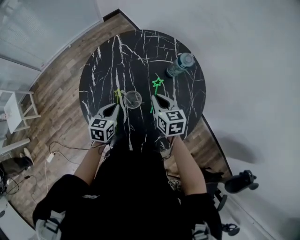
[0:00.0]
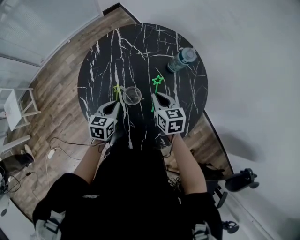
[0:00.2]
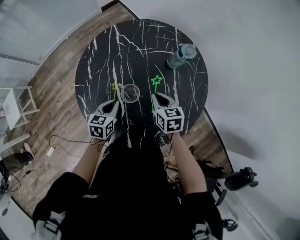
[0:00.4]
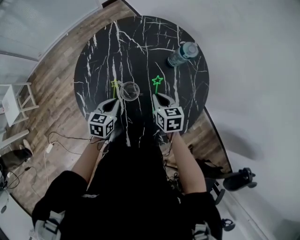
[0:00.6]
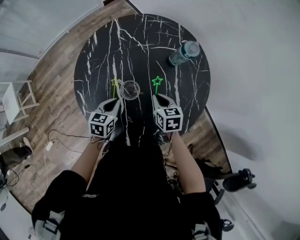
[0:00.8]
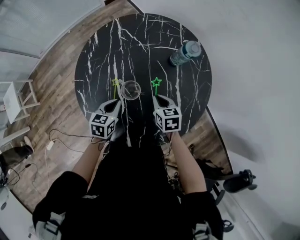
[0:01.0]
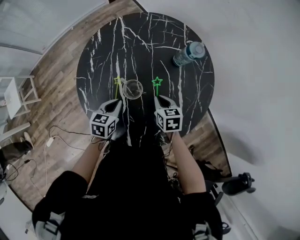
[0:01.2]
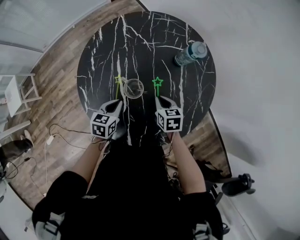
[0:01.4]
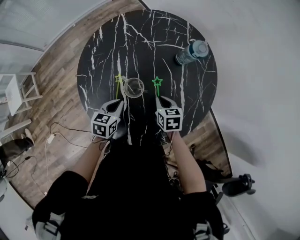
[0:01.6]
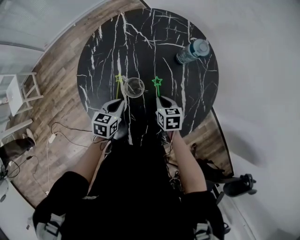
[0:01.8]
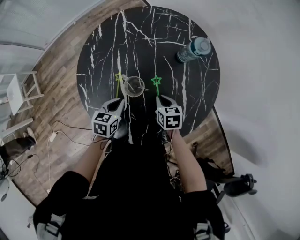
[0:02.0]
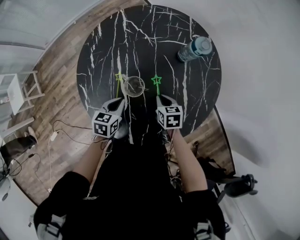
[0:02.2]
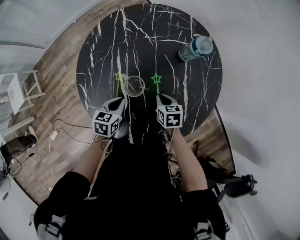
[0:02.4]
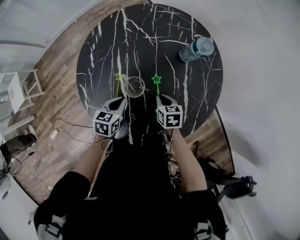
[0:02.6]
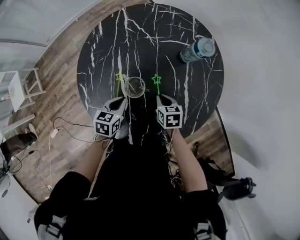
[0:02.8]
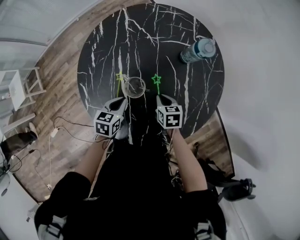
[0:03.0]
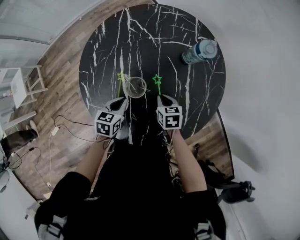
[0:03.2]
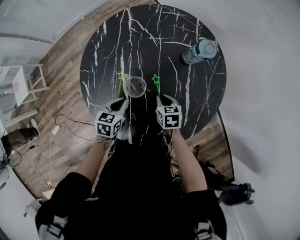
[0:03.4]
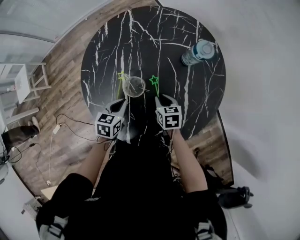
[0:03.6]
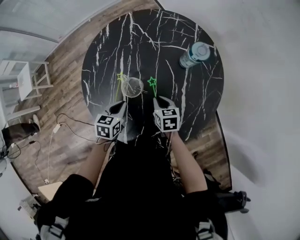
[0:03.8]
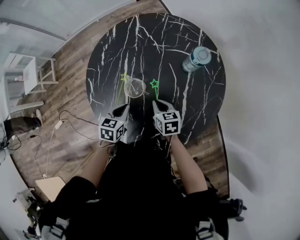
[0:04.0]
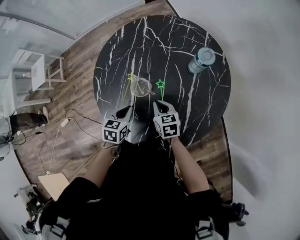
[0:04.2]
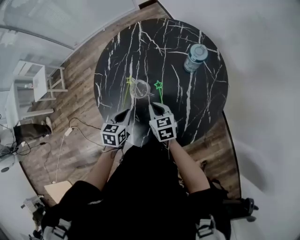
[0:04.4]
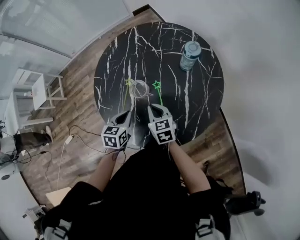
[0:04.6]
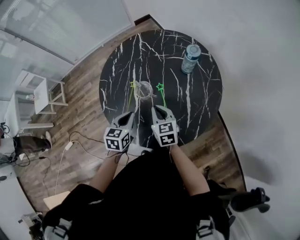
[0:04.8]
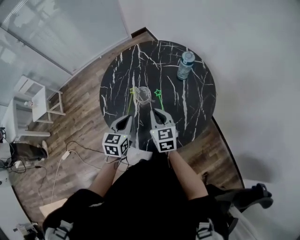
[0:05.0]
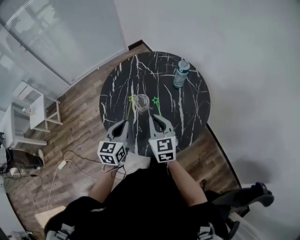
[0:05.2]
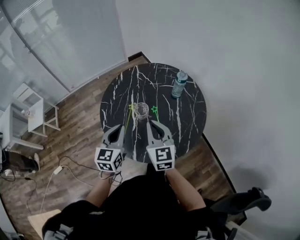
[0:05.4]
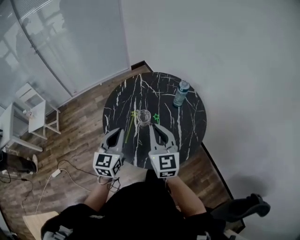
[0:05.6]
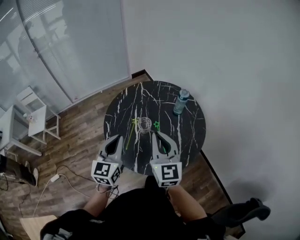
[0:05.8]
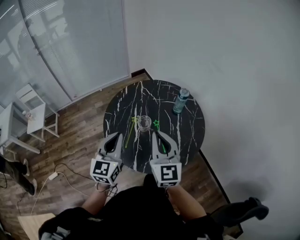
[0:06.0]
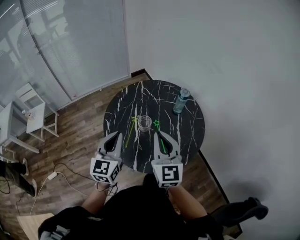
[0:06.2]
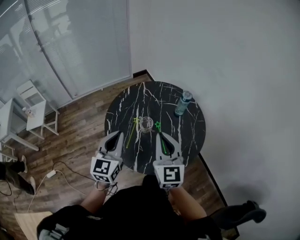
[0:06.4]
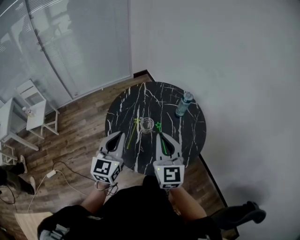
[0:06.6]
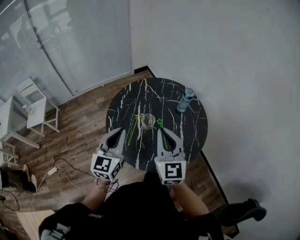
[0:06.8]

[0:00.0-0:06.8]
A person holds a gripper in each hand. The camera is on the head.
0:00.0 to 0:01.4: The left gripper shifts about 5 cm downward. Meanwhile the right gripper heads downward, covering some 10 cm.
0:01.4 to 0:02.8: The right gripper goes some 5 cm downward.
0:02.8 to 0:04.0: There are only small adjustments of the grippers.
0:04.0 to 0:05.4: Both grippers travel together upward, about 25 cm. The right gripper points its fingers some 30 degrees further upward. The left gripper tilts its fingers some 40 degrees upward.
0:05.4 to 0:06.8: Both grippers move upward, approximately 10 cm.

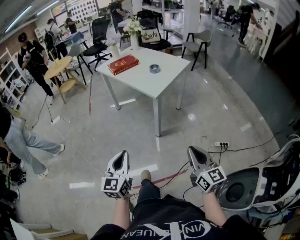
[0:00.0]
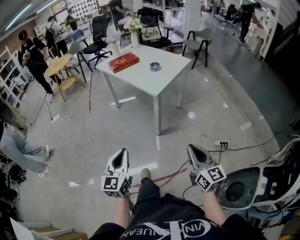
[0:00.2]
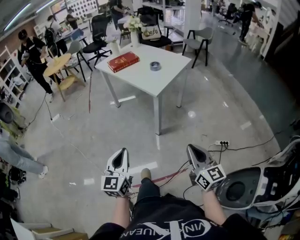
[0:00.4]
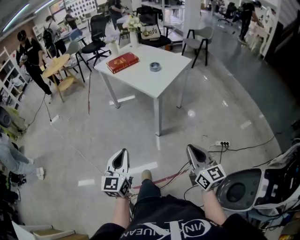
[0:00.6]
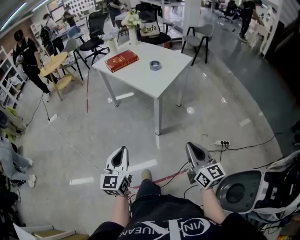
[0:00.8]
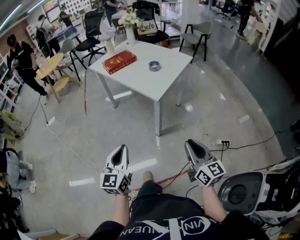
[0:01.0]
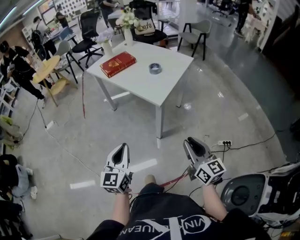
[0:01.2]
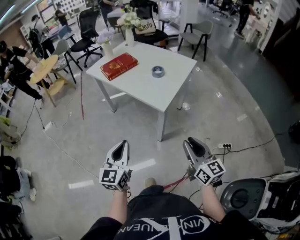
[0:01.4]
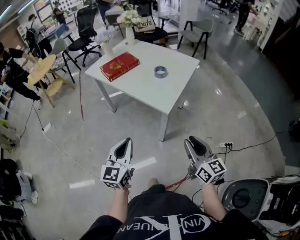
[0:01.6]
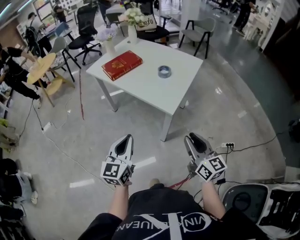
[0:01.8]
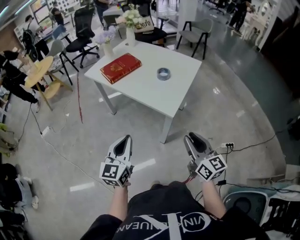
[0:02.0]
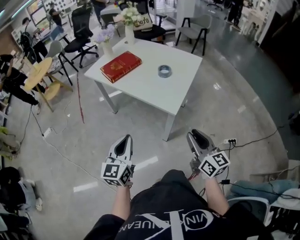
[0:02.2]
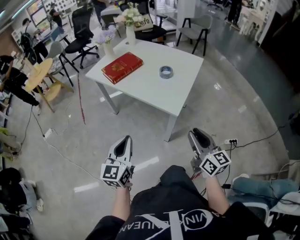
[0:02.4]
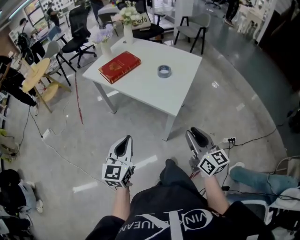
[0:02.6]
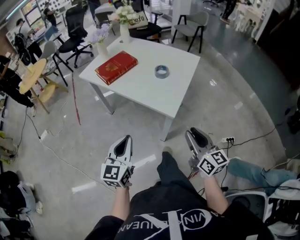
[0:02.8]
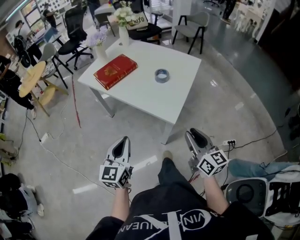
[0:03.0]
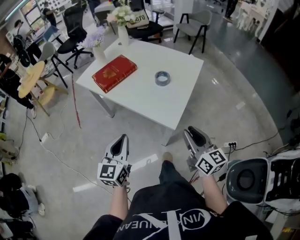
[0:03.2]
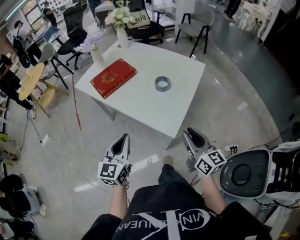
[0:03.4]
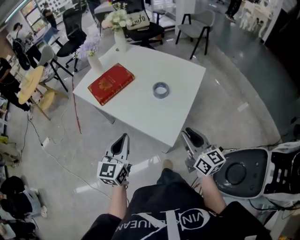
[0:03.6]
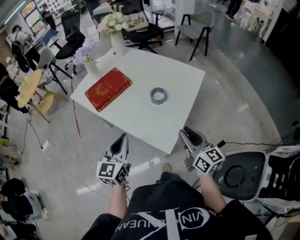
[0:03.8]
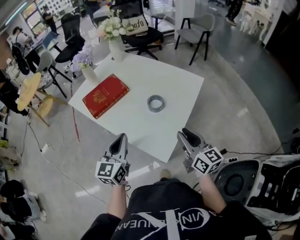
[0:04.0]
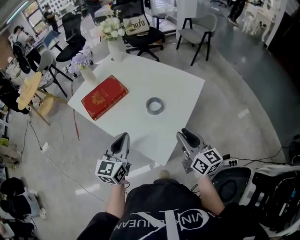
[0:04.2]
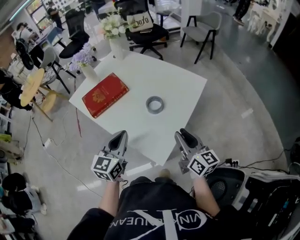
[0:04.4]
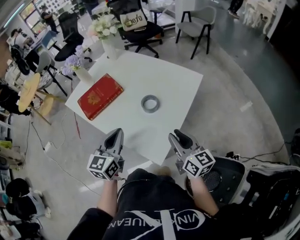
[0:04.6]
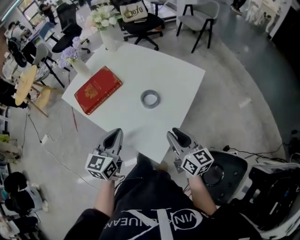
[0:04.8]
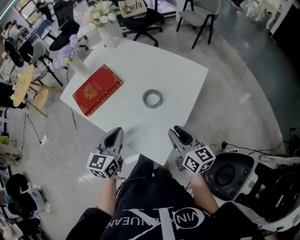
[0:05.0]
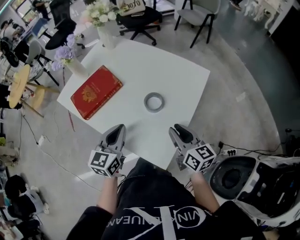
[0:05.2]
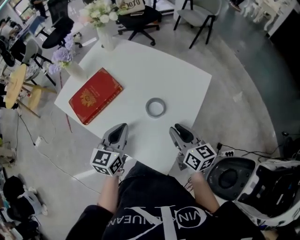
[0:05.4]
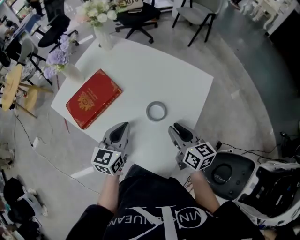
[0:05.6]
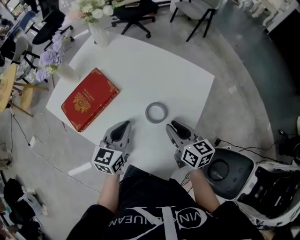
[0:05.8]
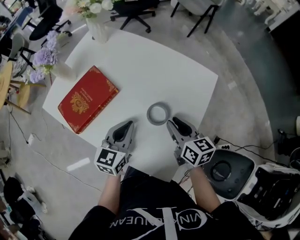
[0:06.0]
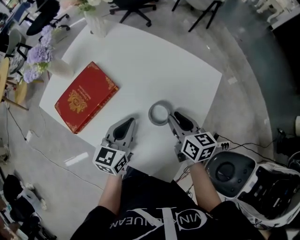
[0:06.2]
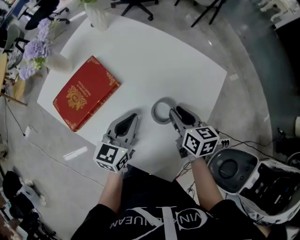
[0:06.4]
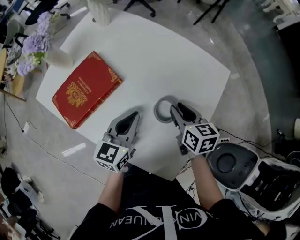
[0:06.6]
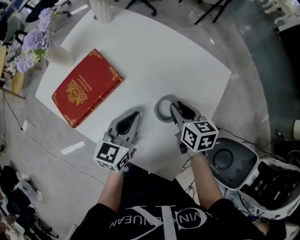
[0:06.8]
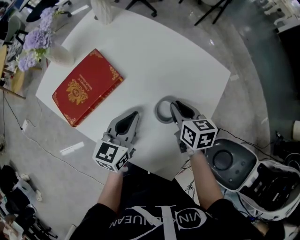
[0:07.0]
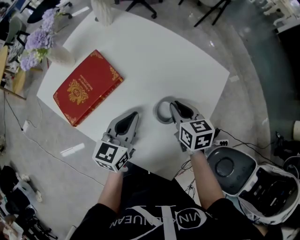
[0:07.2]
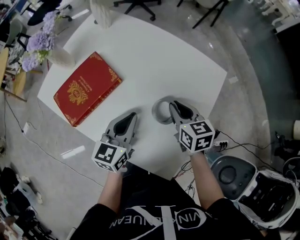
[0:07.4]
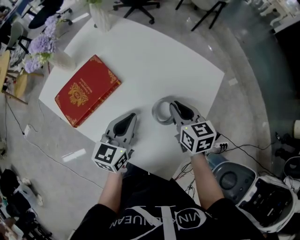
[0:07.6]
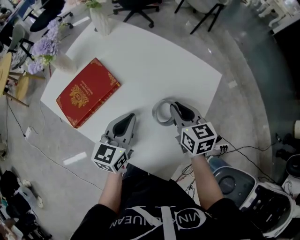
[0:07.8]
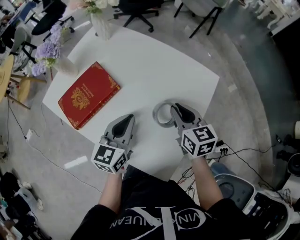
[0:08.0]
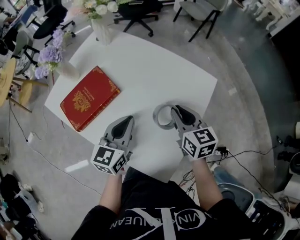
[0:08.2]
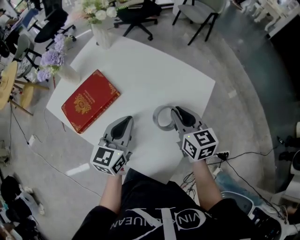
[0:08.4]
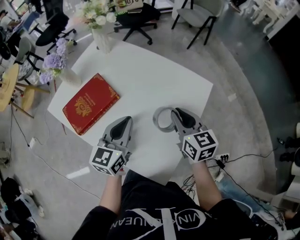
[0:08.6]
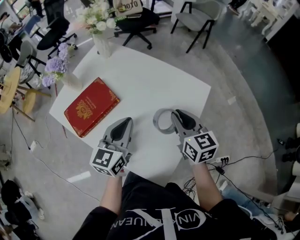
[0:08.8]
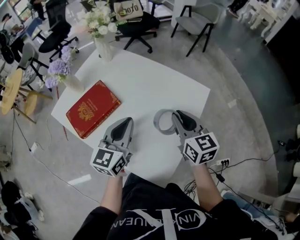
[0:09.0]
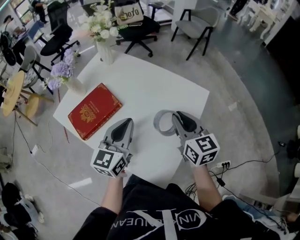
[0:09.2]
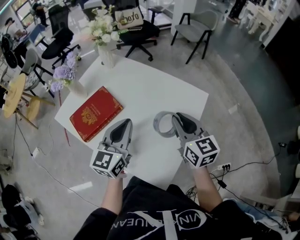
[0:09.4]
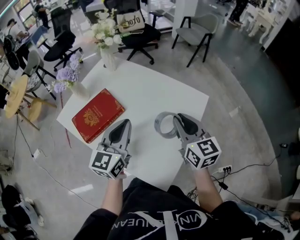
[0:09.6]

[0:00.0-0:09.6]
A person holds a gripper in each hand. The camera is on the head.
0:00.0 to 0:01.6: Both grippers travel together forward, roughly 25 cm. The right gripper opens up.
0:01.6 to 0:03.2: The two grippers go approximately 15 cm forward.
0:03.2 to 0:04.8: The right gripper travels forward by about 20 cm, while the left gripper travels forward and to the right by approximately 25 cm.
0:04.8 to 0:06.4: Both grippers travel together forward and downward, some 20 cm. The right gripper rotates some 30 degrees.
0:06.4 to 0:08.0: The right gripper shifts some 5 cm upward.
0:08.0 to 0:09.6: Both grippers travel together upward, roughly 10 cm.

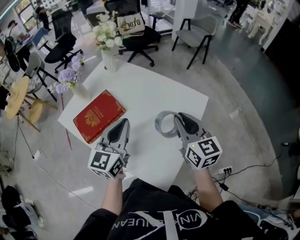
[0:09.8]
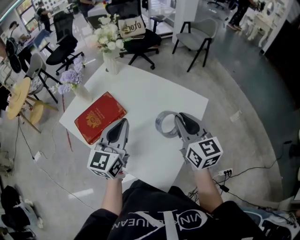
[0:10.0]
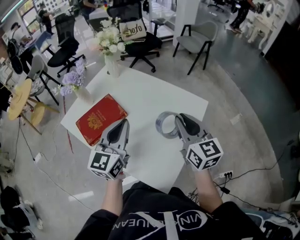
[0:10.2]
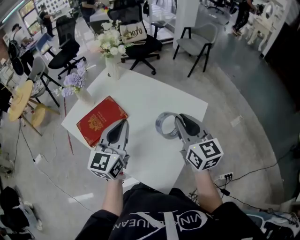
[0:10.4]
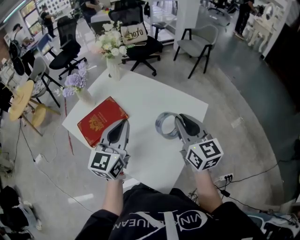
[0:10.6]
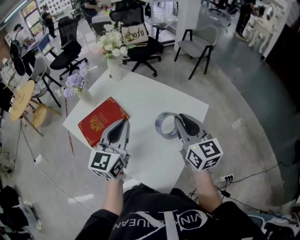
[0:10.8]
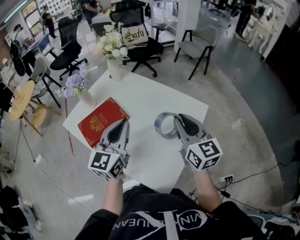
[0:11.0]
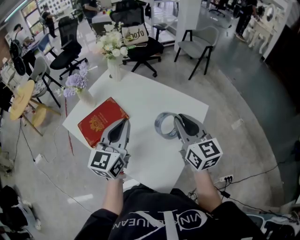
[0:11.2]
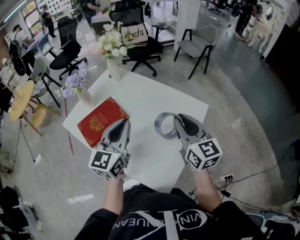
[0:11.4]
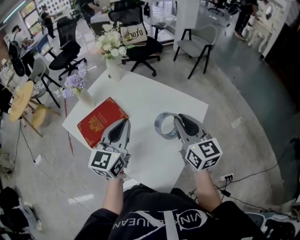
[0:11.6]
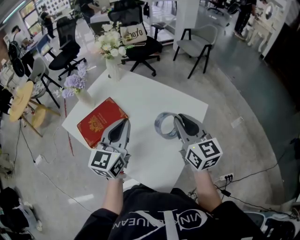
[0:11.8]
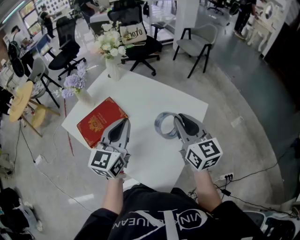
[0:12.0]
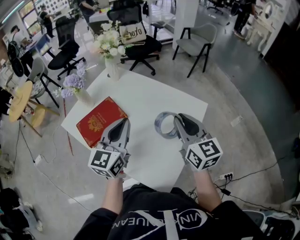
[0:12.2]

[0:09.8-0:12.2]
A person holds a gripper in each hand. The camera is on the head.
0:09.8 to 0:11.0: The grippers move only a little.
0:11.0 to 0:12.2: Both grippers stay about where they are.

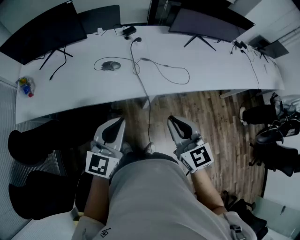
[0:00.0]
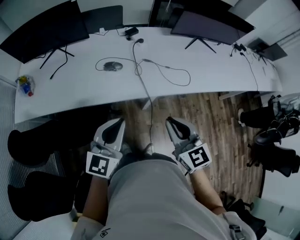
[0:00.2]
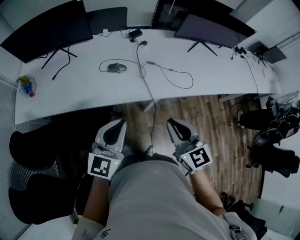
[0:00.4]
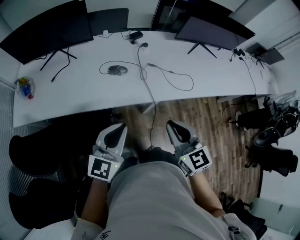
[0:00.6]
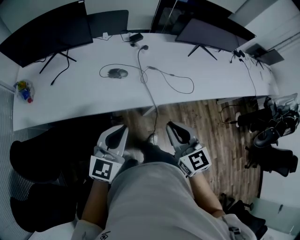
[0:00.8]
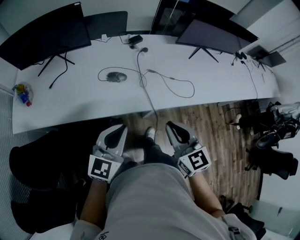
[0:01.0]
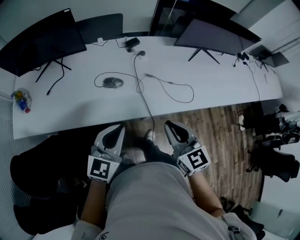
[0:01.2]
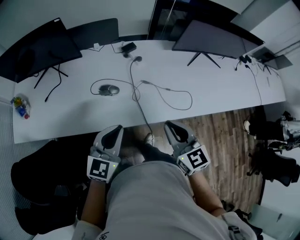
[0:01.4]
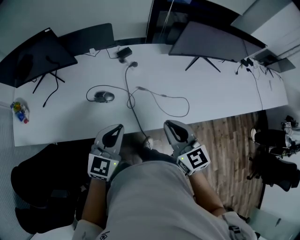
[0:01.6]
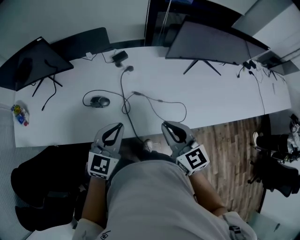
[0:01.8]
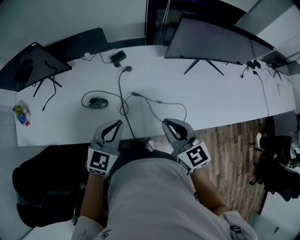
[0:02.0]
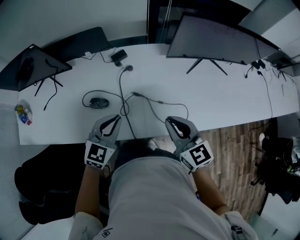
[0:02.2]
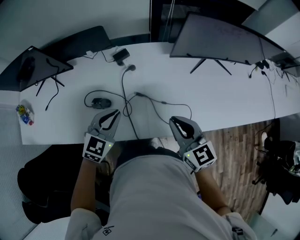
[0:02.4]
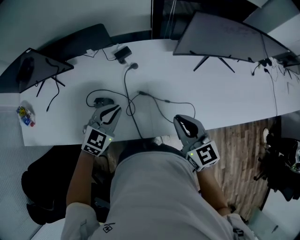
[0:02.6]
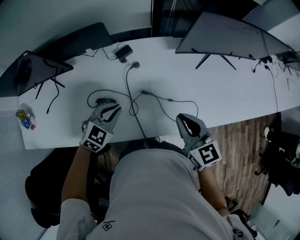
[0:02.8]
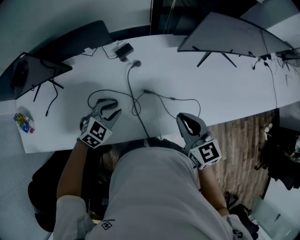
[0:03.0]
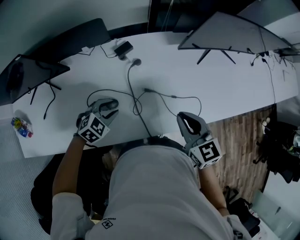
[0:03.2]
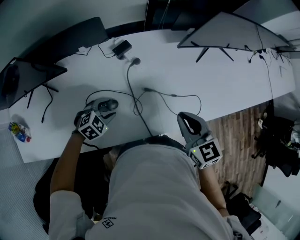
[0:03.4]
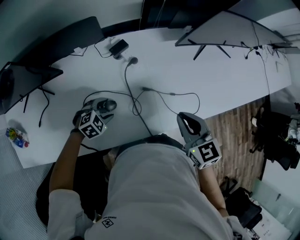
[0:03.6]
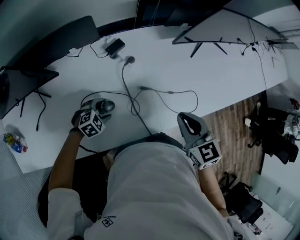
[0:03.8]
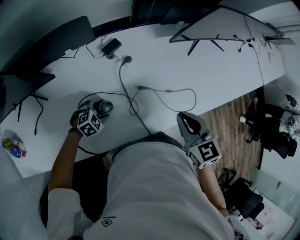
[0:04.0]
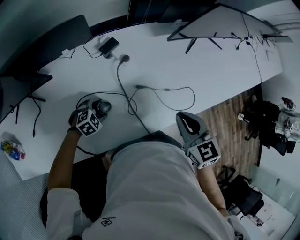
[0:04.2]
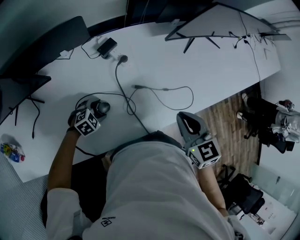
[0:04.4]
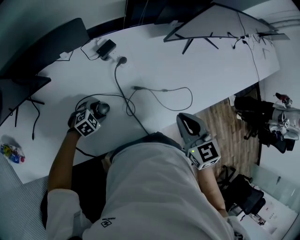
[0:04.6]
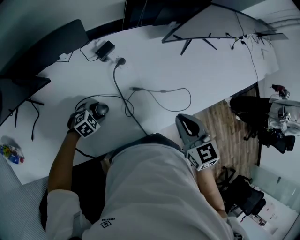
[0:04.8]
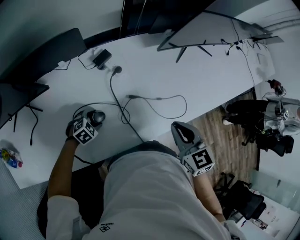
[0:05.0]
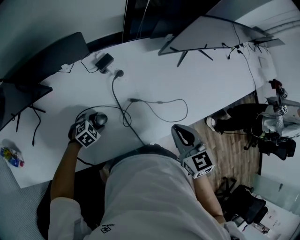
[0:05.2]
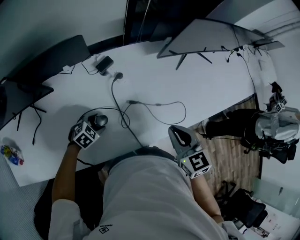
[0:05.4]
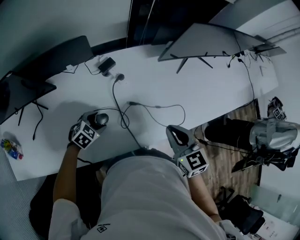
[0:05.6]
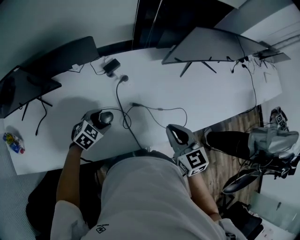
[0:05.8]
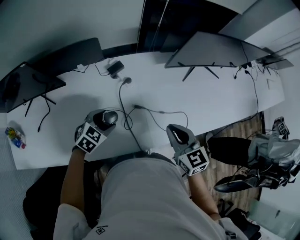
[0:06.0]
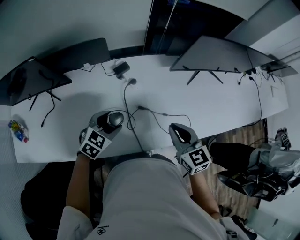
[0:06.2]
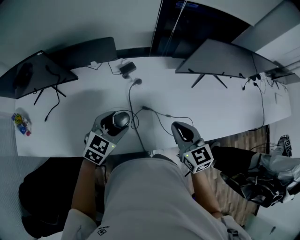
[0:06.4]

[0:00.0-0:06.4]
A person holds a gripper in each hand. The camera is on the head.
0:00.0 to 0:01.6: Both grippers move forward, some 20 cm.
0:01.6 to 0:03.2: The right gripper moves forward, roughly 15 cm. The left gripper travels forward and downward by roughly 25 cm, points its fingers roughly 40 degrees further downward, and opens up.
0:03.2 to 0:04.8: The left gripper goes approximately 15 cm downward, and opens its fingers.
0:04.8 to 0:06.4: The left gripper moves upward, some 25 cm, and changes its angle by some 40 degrees.
